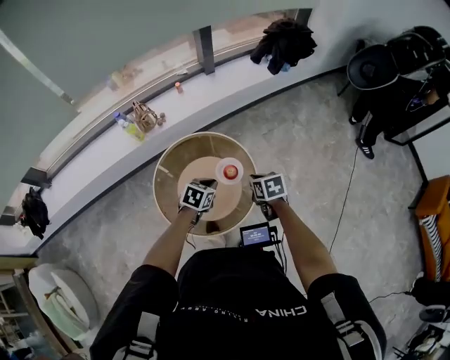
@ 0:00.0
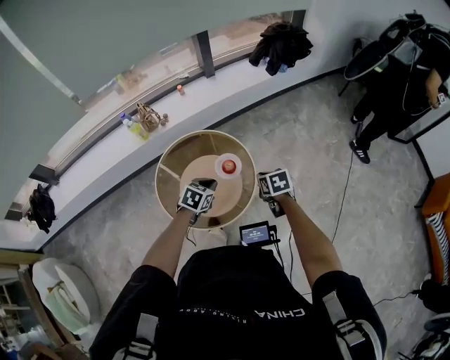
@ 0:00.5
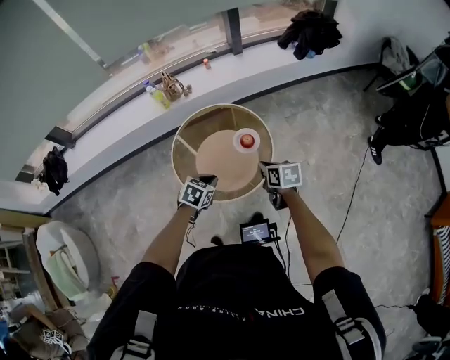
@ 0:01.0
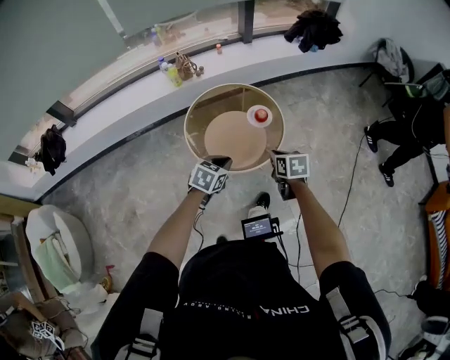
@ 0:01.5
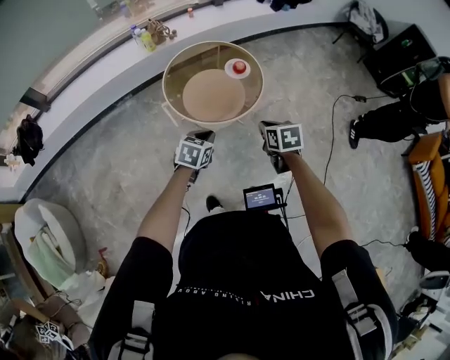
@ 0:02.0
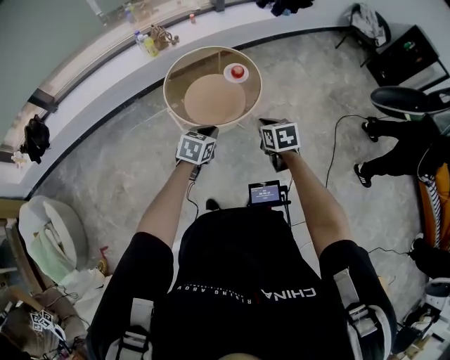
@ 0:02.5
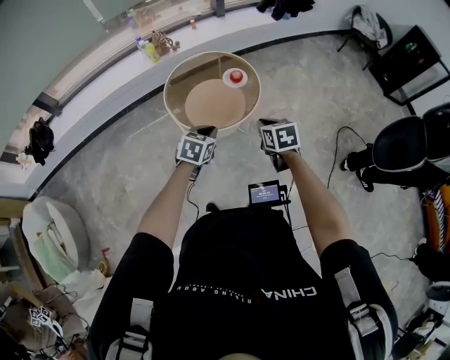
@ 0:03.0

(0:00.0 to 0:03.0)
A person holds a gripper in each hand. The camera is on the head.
0:00.0 - 0:01.5: The grippers both shift backward by some 30 cm.
0:01.5 - 0:03.0: The two grippers go roughly 10 cm backward.

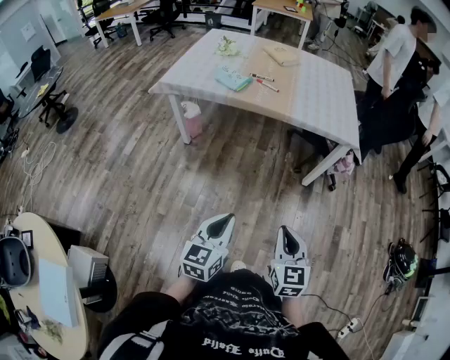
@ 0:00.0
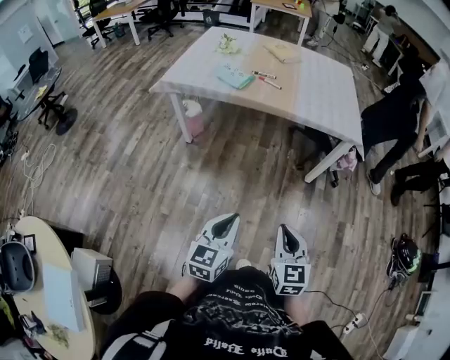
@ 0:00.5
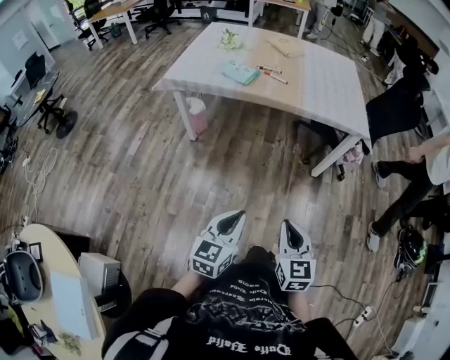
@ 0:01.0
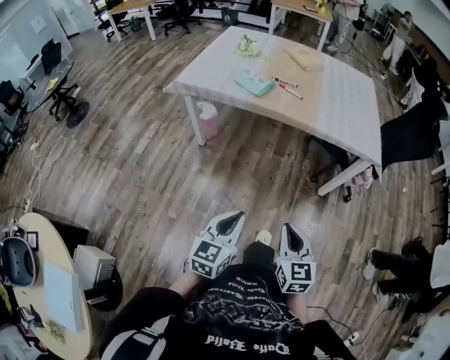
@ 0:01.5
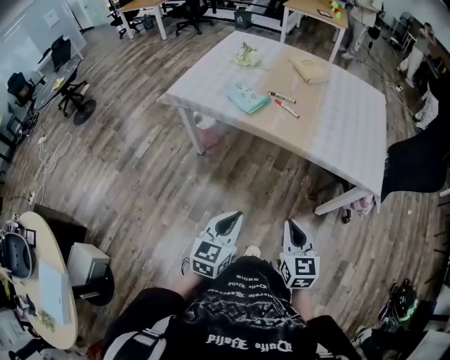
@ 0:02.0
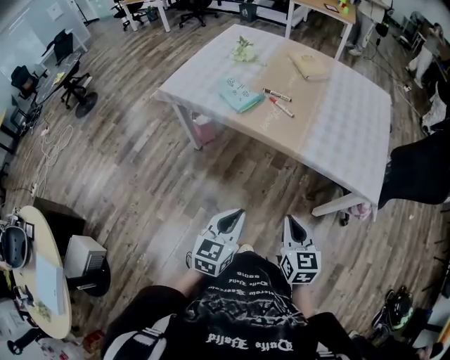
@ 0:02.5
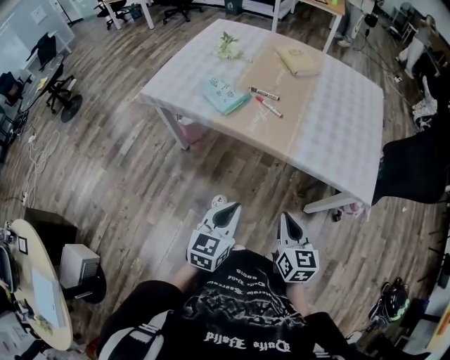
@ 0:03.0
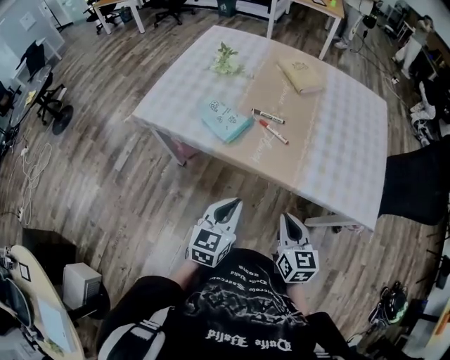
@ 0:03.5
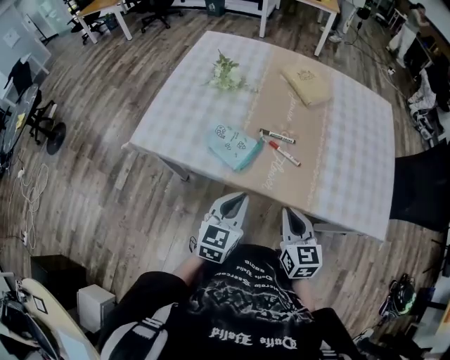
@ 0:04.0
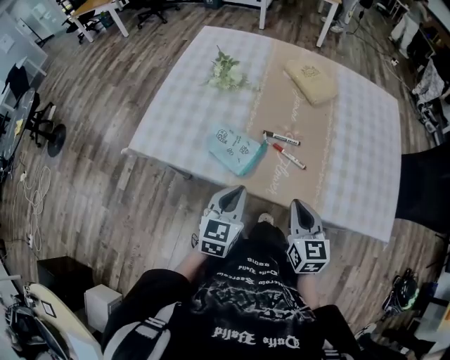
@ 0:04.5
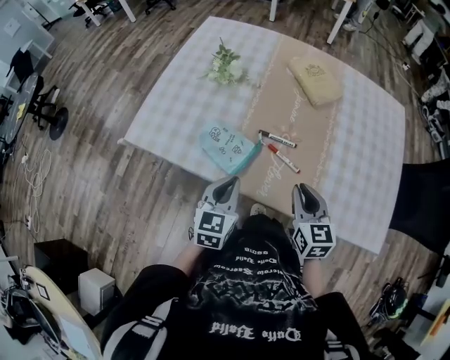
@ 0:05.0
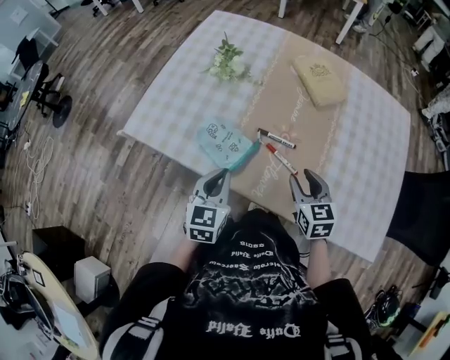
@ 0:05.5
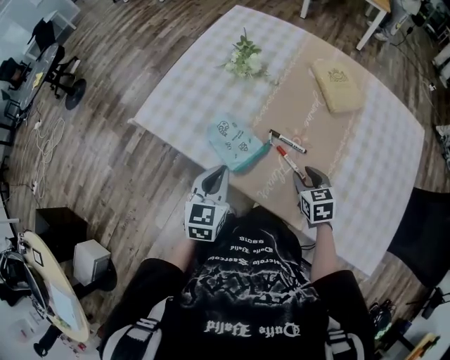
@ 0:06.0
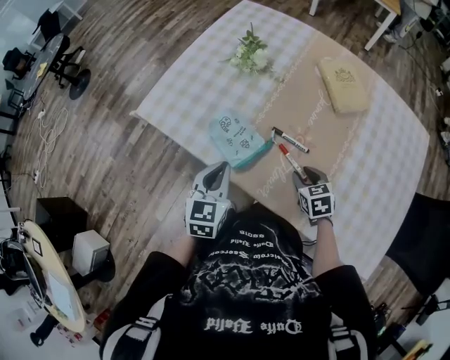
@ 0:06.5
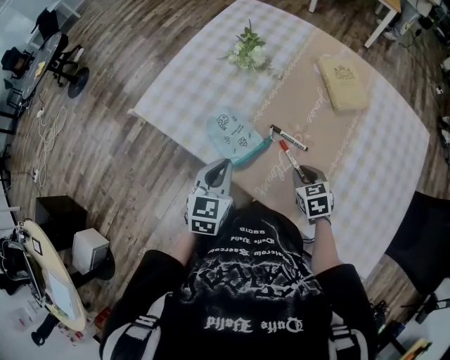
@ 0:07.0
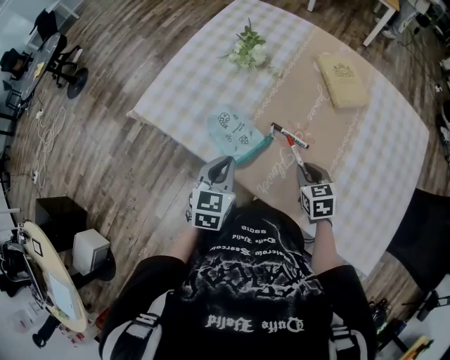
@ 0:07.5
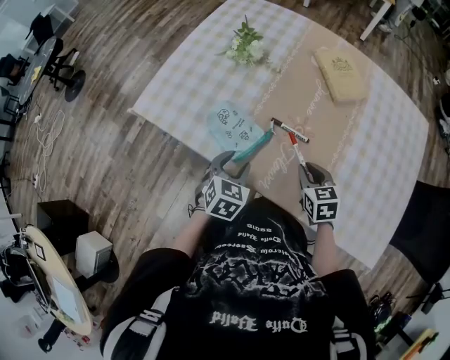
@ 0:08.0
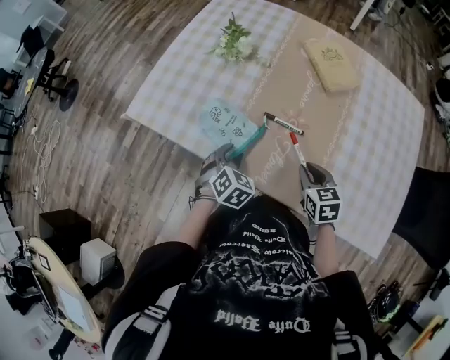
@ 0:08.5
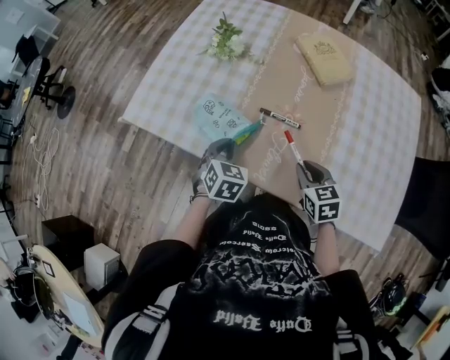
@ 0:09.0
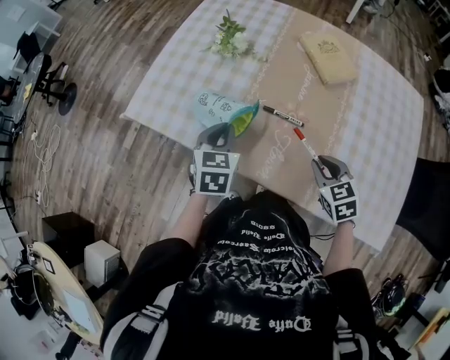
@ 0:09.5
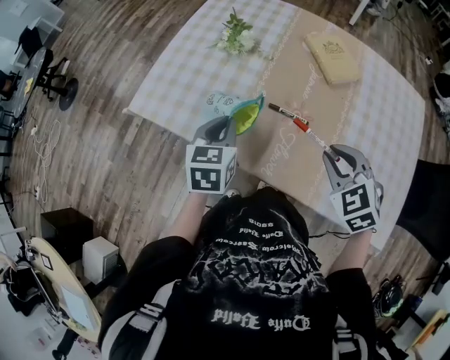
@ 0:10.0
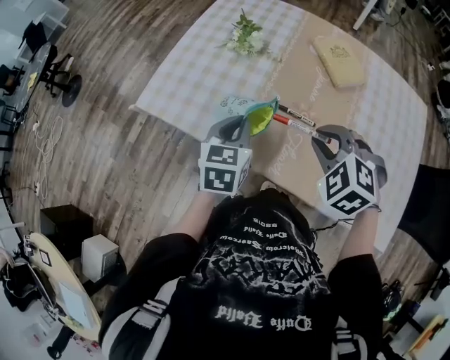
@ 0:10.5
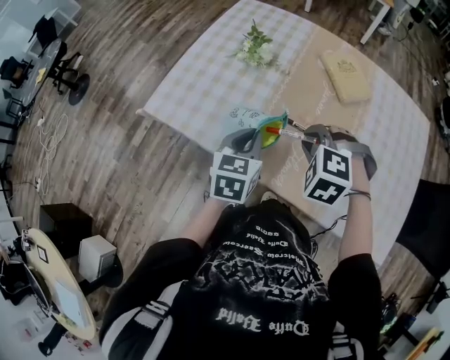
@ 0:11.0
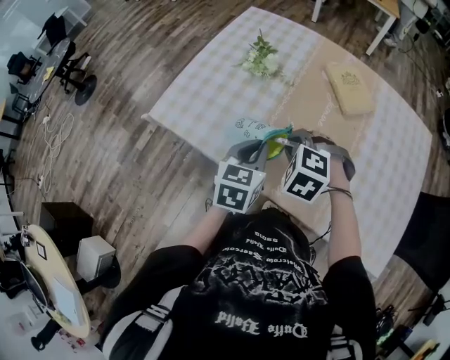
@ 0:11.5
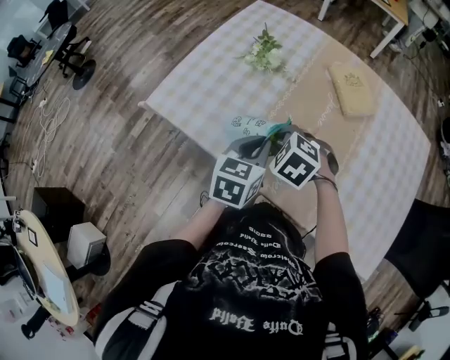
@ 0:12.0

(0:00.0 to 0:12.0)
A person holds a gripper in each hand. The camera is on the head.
0:00.0 - 0:02.0: Both grippers move forward, approximately 25 cm.
0:02.0 - 0:04.0: Both grippers are carried forward, approximately 40 cm.
0:04.0 - 0:06.0: The right gripper heads forward and downward, covering roughly 25 cm, turns by roughly 30 degrees, and opens its fingers. The left gripper moves forward, about 10 cm, and swivels approximately 20 degrees.
0:06.0 - 0:08.0: The left gripper shifts about 5 cm downward, rotates some 20 degrees, and opens its fingers, while the right gripper closes.
0:08.0 - 0:10.0: The left gripper is displaced upward and forward by approximately 10 cm, rotates roughly 20 degrees, and closes its fingers. The right gripper moves upward, roughly 15 cm, and swivels roughly 30 degrees.
0:10.0 - 0:12.0: The right gripper travels to the left and forward by approximately 20 cm, and changes its angle by roughly 30 degrees.

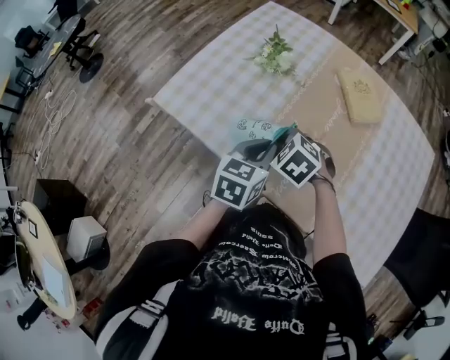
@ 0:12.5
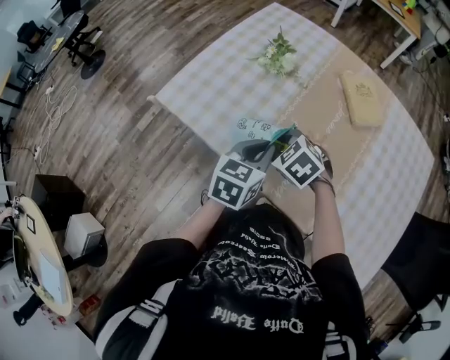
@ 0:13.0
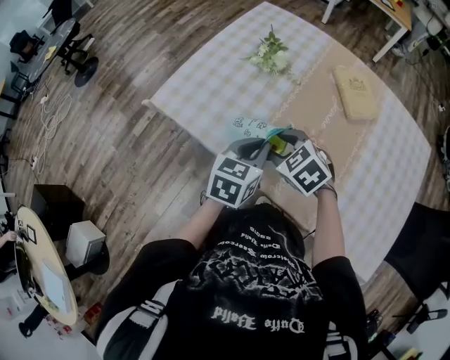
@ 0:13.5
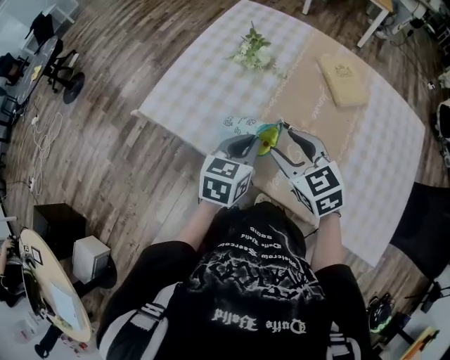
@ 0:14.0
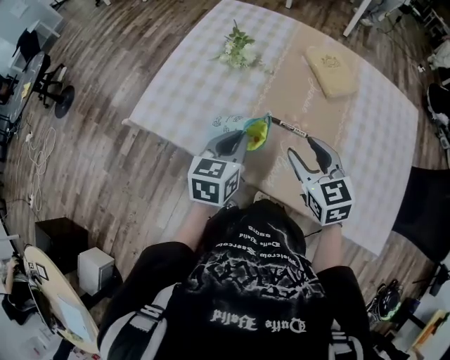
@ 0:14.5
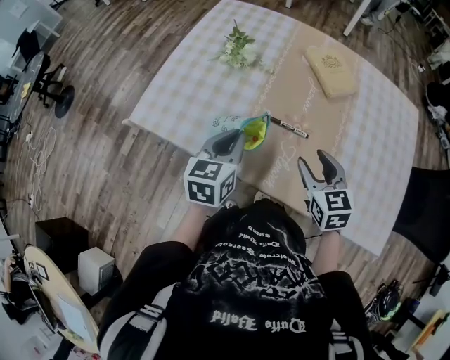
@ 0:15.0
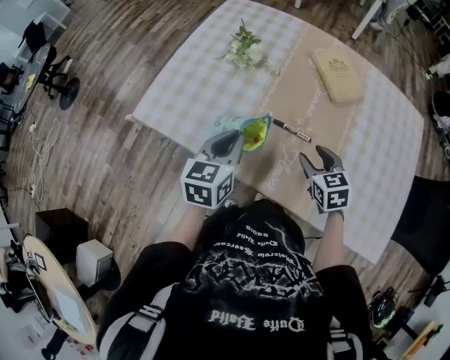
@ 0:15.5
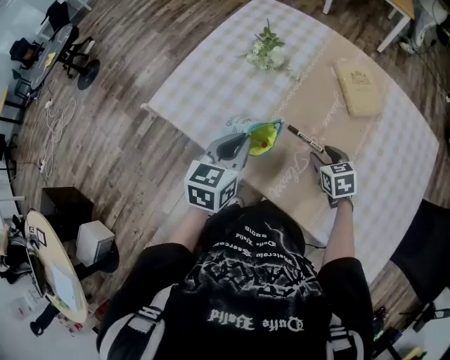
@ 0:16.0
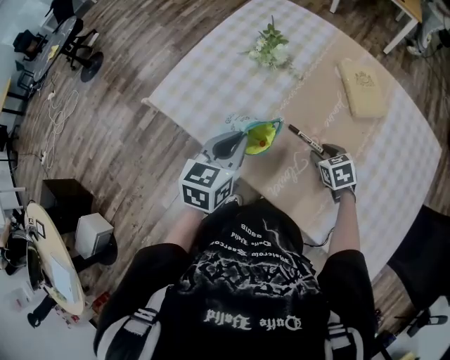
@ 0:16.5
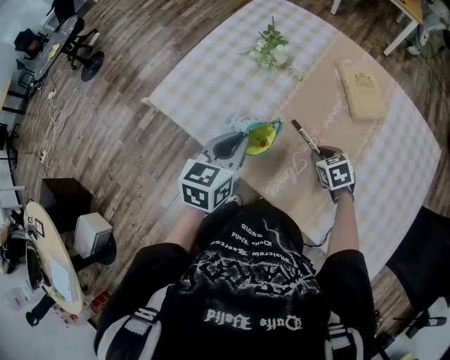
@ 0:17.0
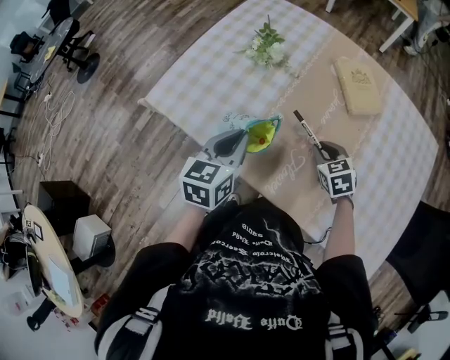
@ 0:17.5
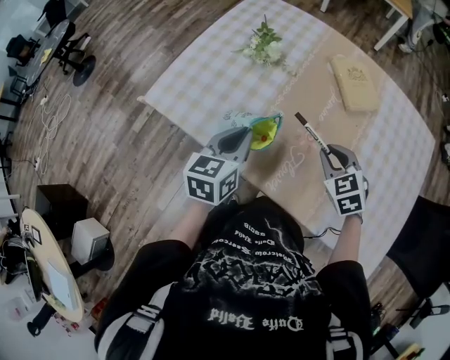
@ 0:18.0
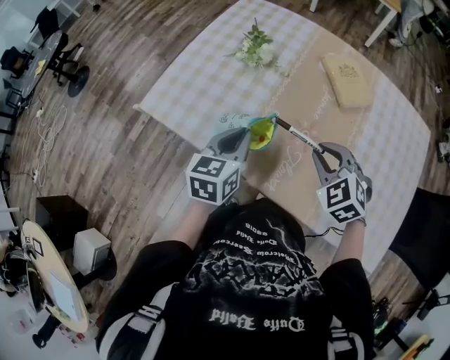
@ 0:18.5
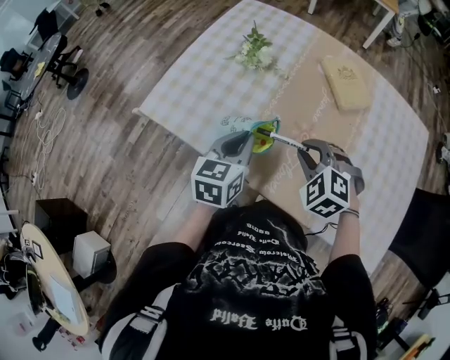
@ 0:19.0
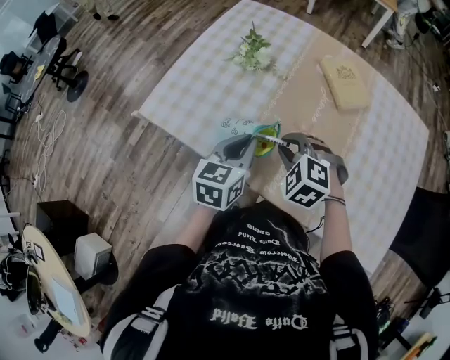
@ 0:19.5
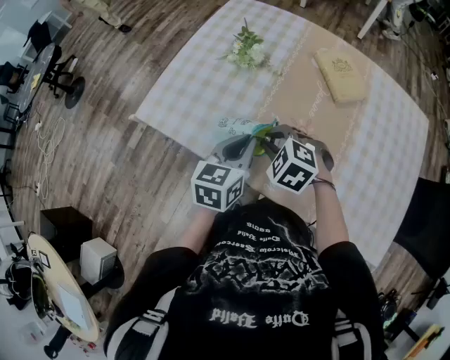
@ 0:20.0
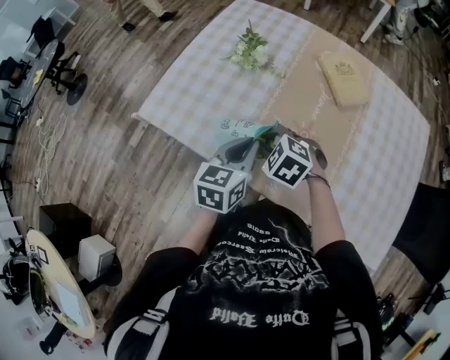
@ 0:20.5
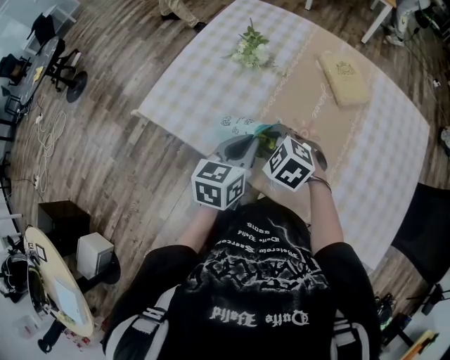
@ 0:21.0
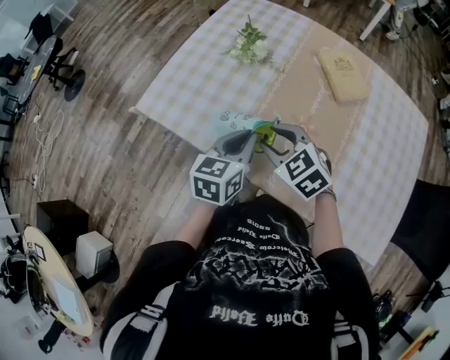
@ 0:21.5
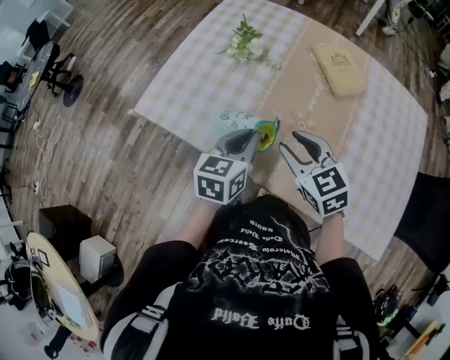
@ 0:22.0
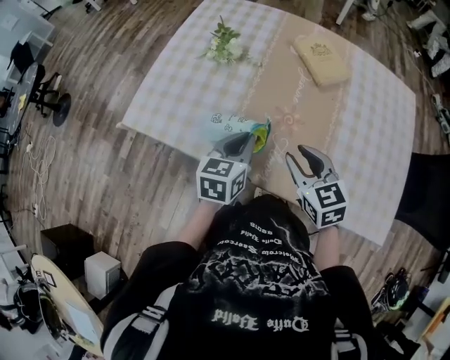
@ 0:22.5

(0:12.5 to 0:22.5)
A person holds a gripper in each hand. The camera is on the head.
0:12.5 - 0:14.5: The right gripper travels to the right, upward and backward by approximately 15 cm, tips its fingers upward by roughly 30 degrees, and opens its fingers.
0:14.5 - 0:16.5: The right gripper shifts about 20 cm downward and forward, and rotates roughly 30 degrees.
0:16.5 - 0:18.5: The right gripper travels upward by roughly 15 cm, turns by about 30 degrees, and closes up.
0:18.5 - 0:20.5: The right gripper shifts about 15 cm to the left and downward, and rotates approximately 20 degrees.
0:20.5 - 0:22.5: The right gripper heads to the right, backward and upward, covering some 15 cm, and changes its angle by approximately 50 degrees.

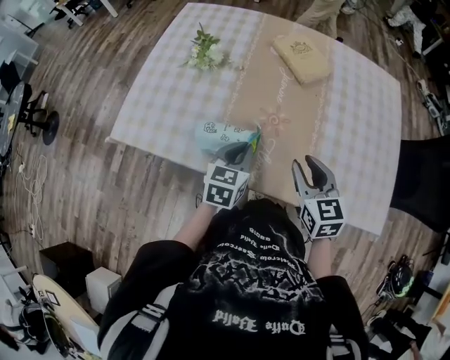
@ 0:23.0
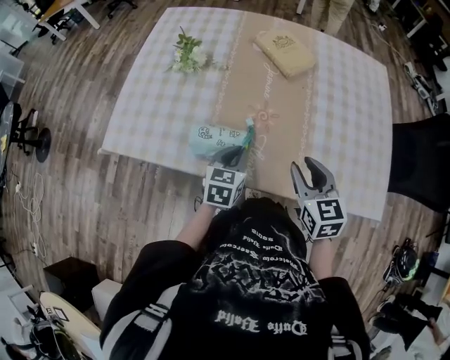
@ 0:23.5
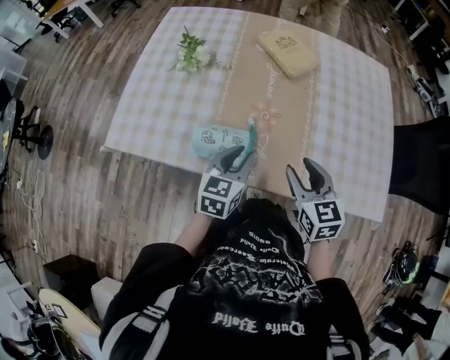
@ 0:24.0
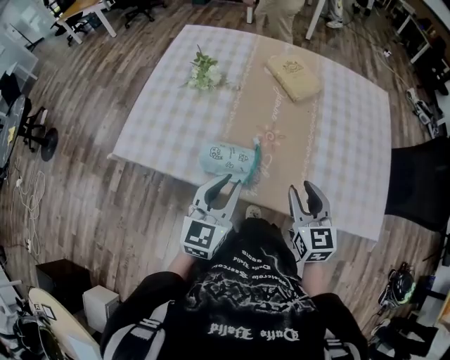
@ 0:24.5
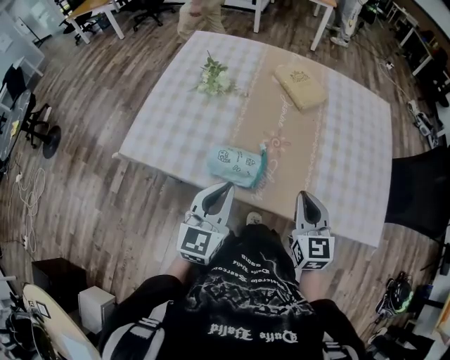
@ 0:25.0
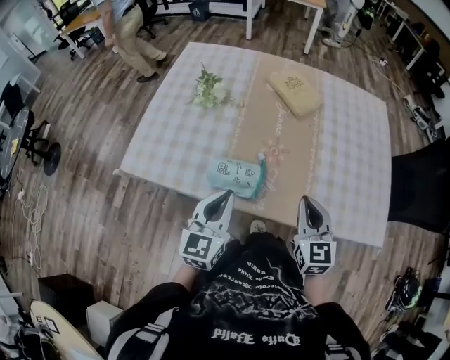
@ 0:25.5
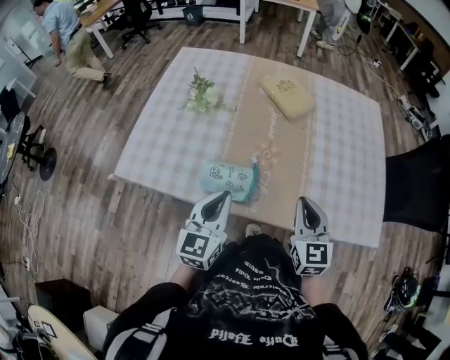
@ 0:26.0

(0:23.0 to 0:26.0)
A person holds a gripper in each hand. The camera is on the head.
0:23.0 - 0:24.5: The right gripper is displaced backward by about 5 cm; the left gripper moves upward and backward, roughly 15 cm, and changes its angle by about 20 degrees.
0:24.5 - 0:26.0: The right gripper closes.
